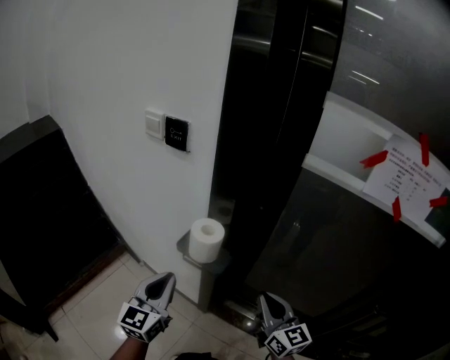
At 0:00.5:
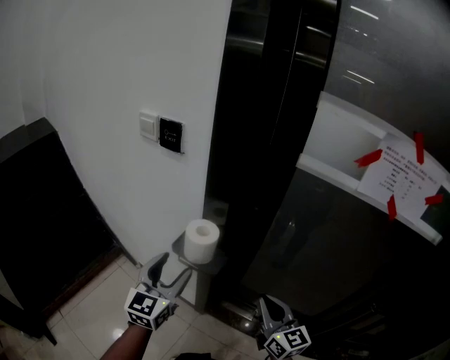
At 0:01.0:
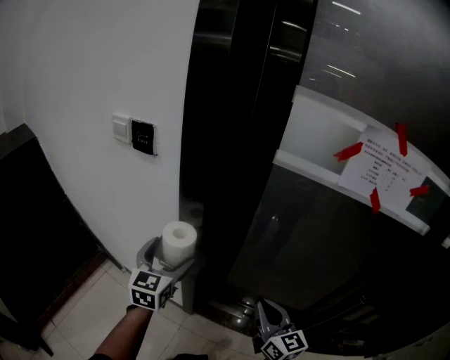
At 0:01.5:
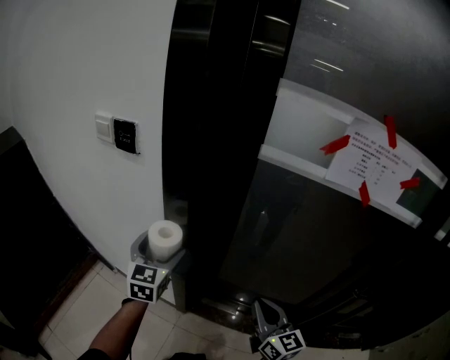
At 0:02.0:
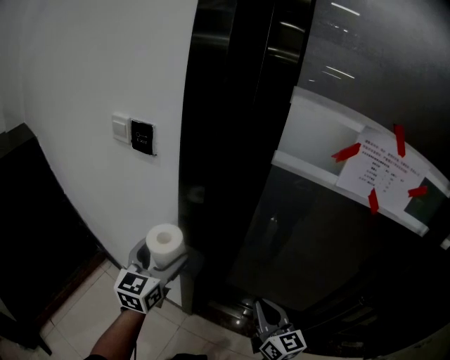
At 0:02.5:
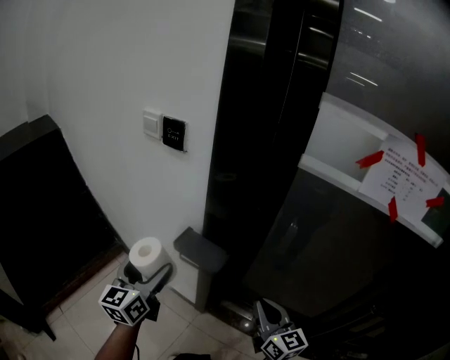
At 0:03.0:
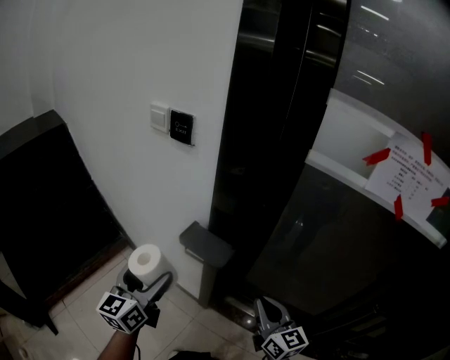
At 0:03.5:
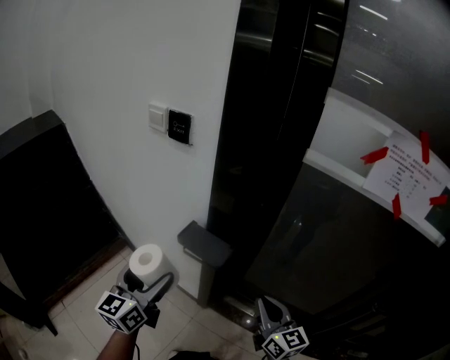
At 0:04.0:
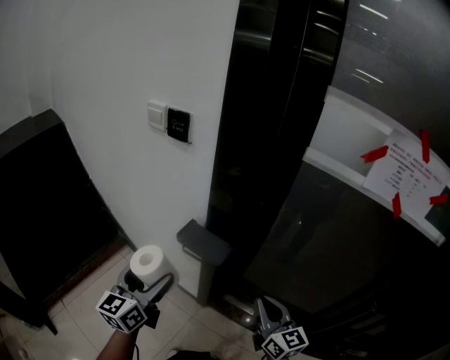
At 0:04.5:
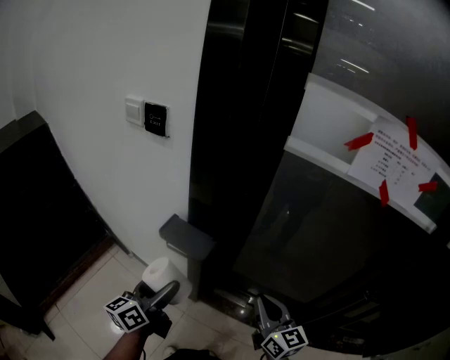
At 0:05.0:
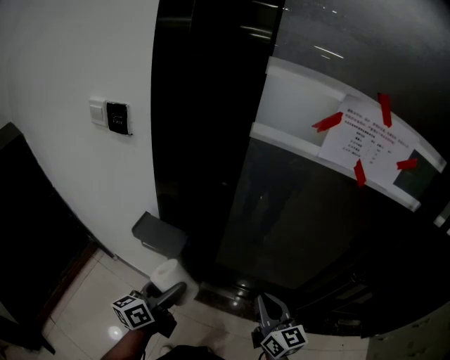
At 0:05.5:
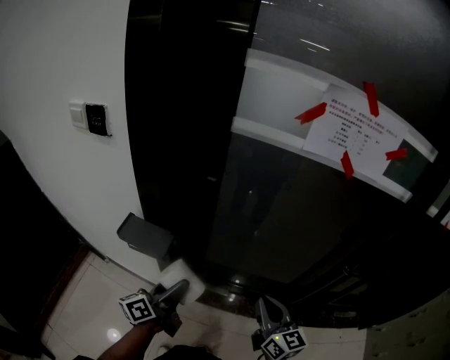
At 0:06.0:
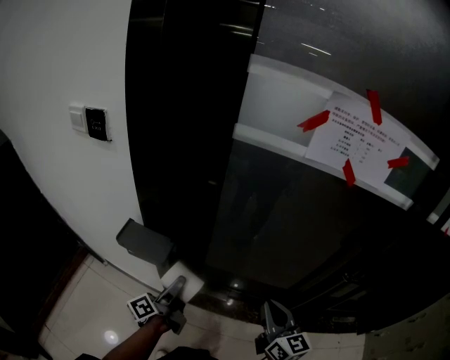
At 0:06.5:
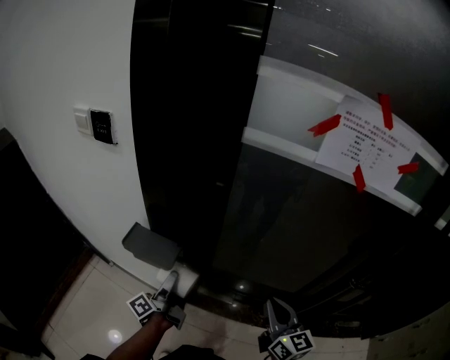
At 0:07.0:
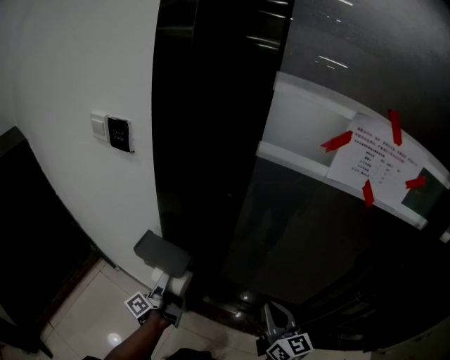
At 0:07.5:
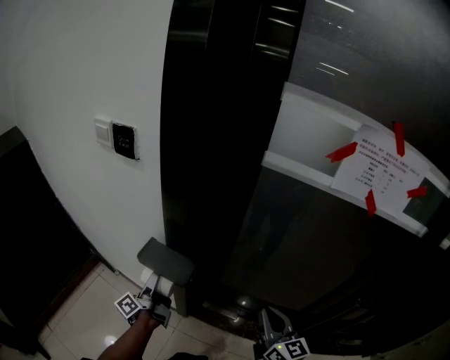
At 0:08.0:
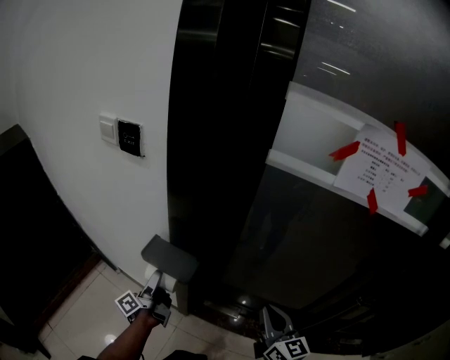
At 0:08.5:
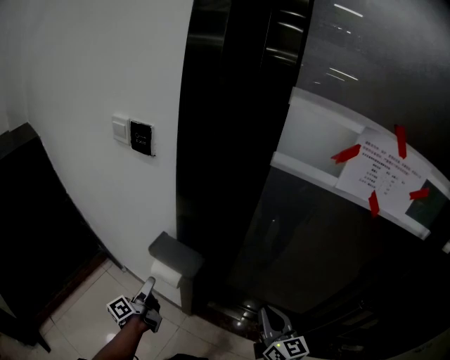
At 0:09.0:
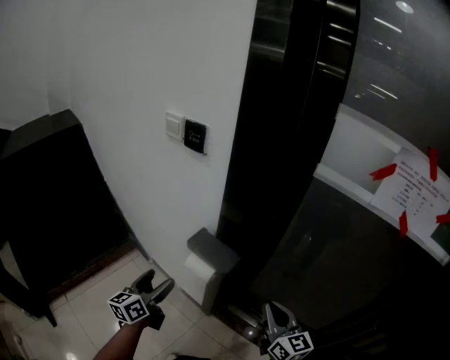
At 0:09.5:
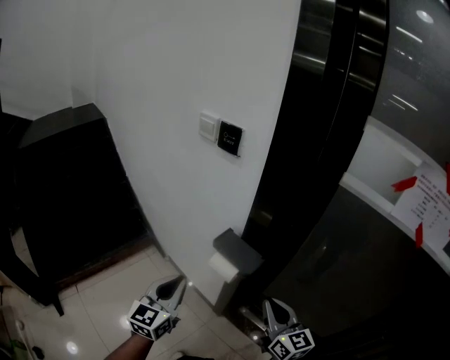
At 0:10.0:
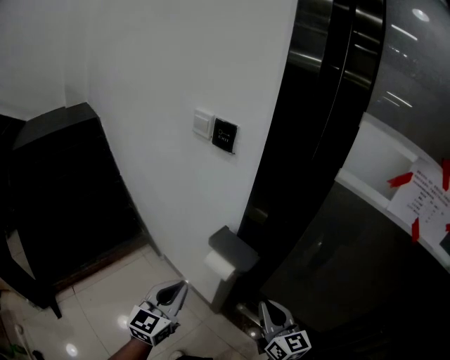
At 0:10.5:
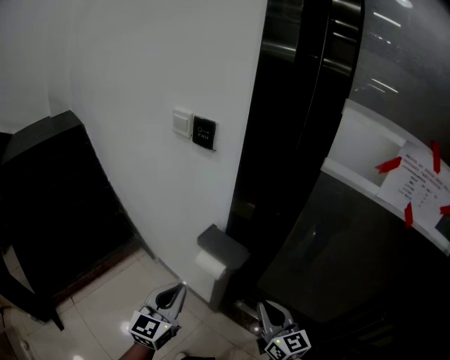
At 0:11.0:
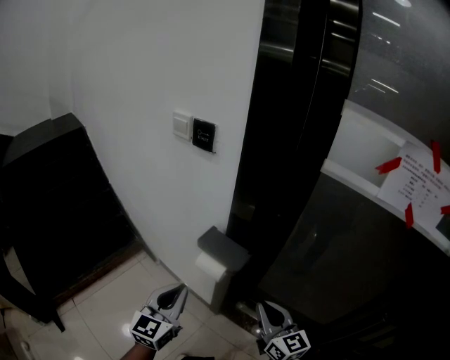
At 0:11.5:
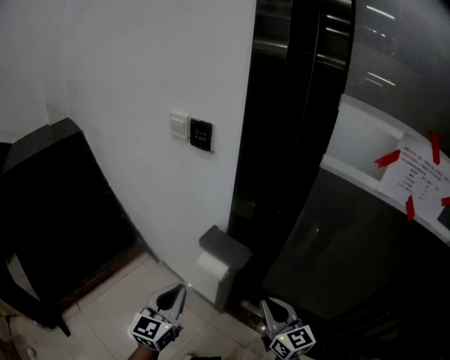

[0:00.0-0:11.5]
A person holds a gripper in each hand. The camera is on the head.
0:00.0 to 0:02.0: The right gripper travels to the right by roughly 5 cm. The left gripper shifts some 10 cm forward and to the right, and opens its fingers.
0:02.0 to 0:04.0: The left gripper heads to the left and backward, covering about 15 cm. The right gripper ends up approximately 5 cm from where it was.
0:04.0 to 0:06.0: The left gripper travels to the right and downward by roughly 25 cm, and twists approximately 70 degrees counterclockwise, seen from behind. Meanwhile the right gripper moves to the right, about 15 cm, and changes its angle by roughly 20 degrees.
0:06.0 to 0:07.5: The right gripper heads to the left and forward, covering approximately 10 cm; the left gripper heads to the left and forward, covering some 15 cm.
0:07.5 to 0:09.5: The right gripper moves to the left, some 15 cm, and turns by roughly 20 degrees. The left gripper shifts approximately 20 cm backward, upward and to the left, rolls clockwise, seen from behind, by approximately 80 degrees, and closes up.
0:09.5 to 0:11.5: The grippers stay close to where they were, moving slightly.

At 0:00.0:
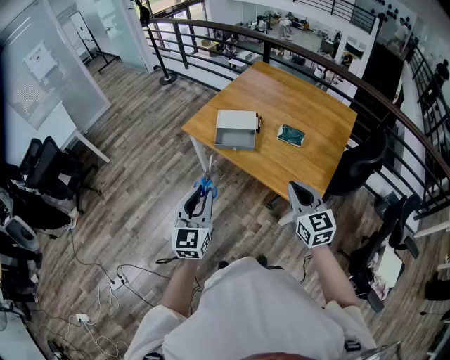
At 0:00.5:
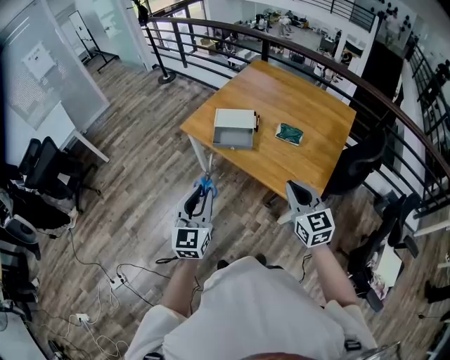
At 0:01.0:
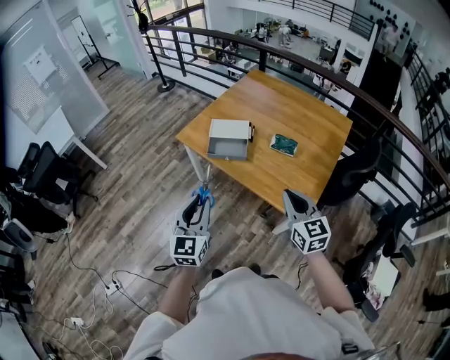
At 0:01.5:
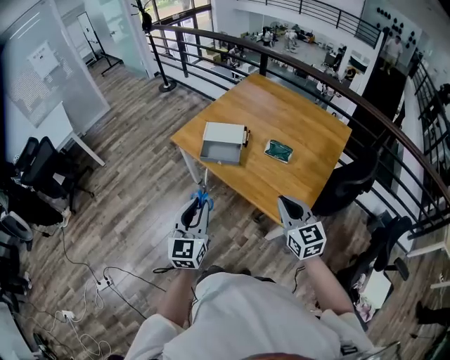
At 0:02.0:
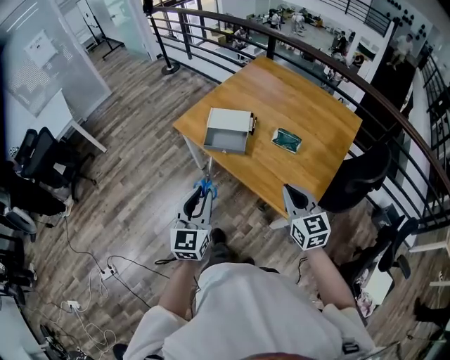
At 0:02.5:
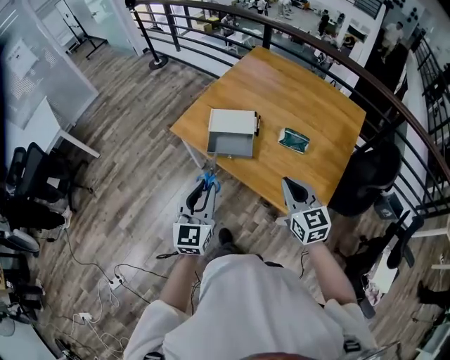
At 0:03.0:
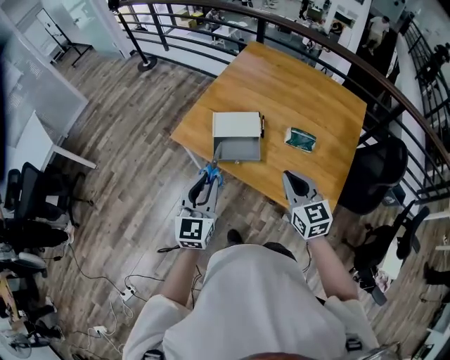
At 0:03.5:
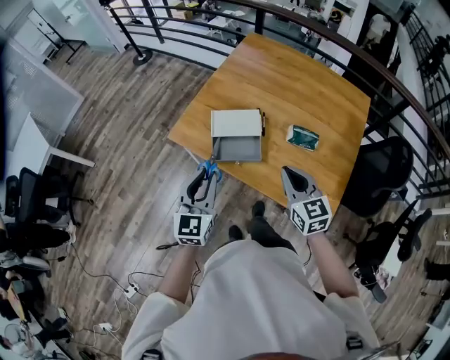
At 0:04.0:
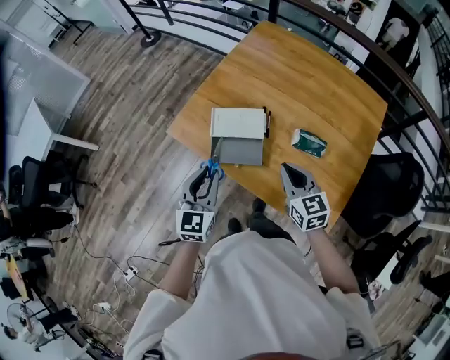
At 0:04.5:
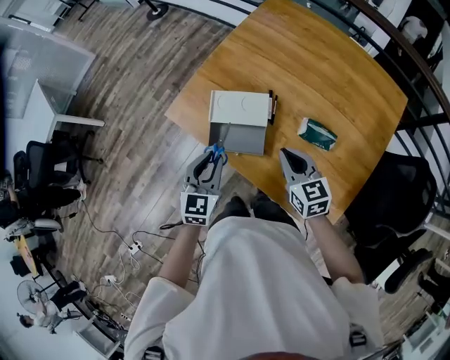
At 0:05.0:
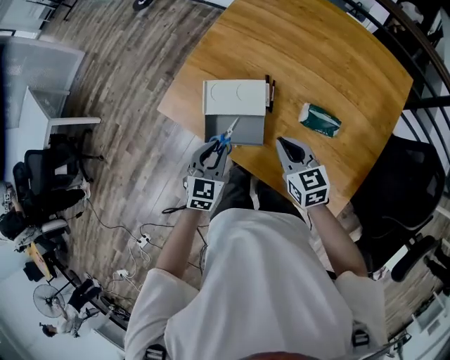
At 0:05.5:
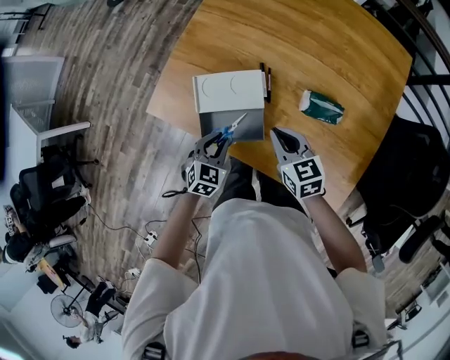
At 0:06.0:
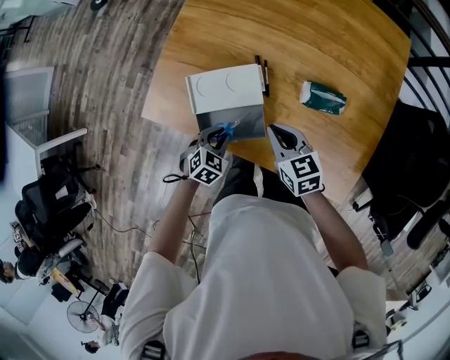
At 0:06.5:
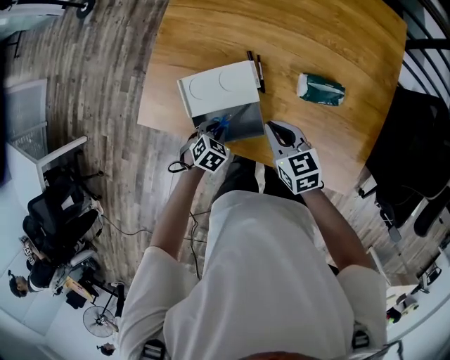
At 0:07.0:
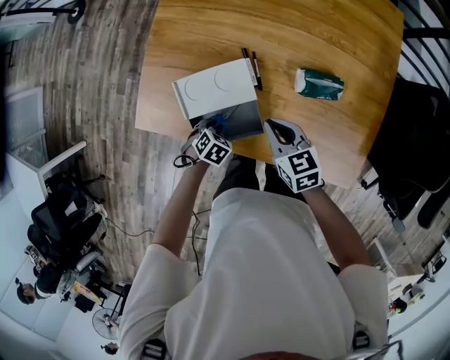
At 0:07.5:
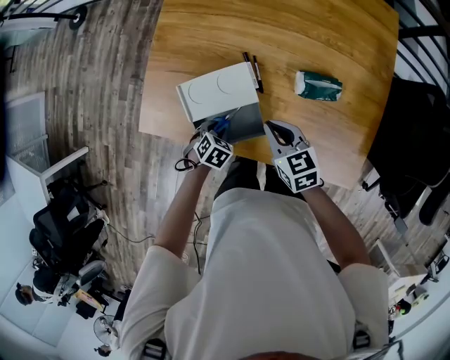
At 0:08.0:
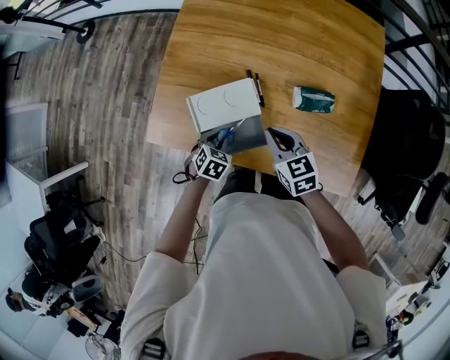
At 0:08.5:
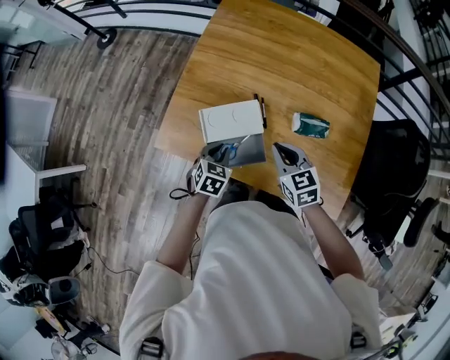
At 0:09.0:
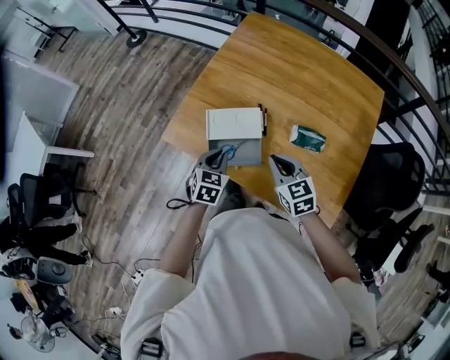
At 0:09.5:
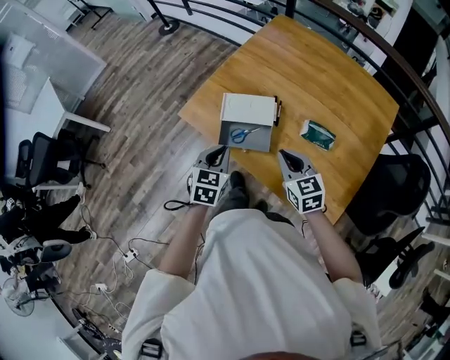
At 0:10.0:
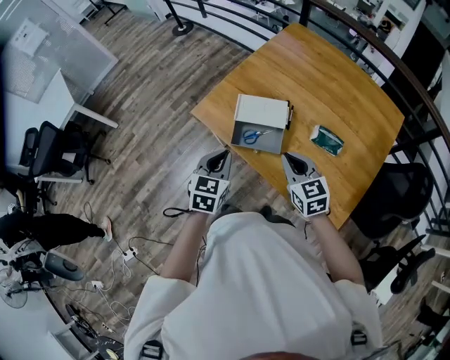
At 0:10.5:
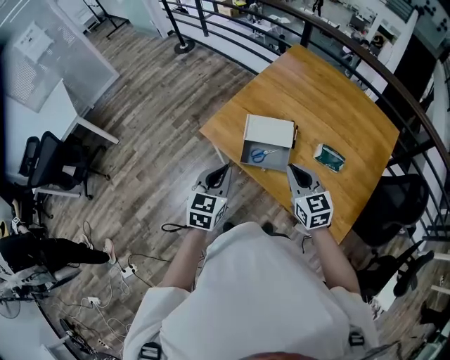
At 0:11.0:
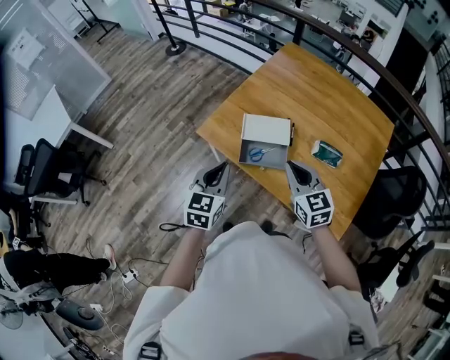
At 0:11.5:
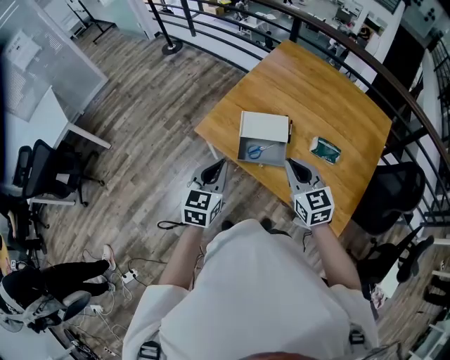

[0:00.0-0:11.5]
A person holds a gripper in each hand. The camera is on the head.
0:00.0 to 0:02.0: The right gripper moves forward and to the right, roughly 10 cm. The left gripper goes about 10 cm to the right and forward.
0:02.0 to 0:04.0: The two grippers go about 30 cm forward.
0:04.0 to 0:06.0: The right gripper moves downward and forward, approximately 20 cm; the left gripper heads downward, covering some 30 cm, and tips its fingers downward by approximately 40 degrees.
0:06.0 to 0:07.5: The left gripper goes some 5 cm downward.
0:07.5 to 0:09.5: The right gripper goes roughly 20 cm upward and backward, and changes its angle by some 20 degrees. The left gripper is displaced upward and backward by some 30 cm, points its fingers roughly 40 degrees further upward, and closes.
0:09.5 to 0:11.5: Both grippers travel together to the left and upward, approximately 15 cm.

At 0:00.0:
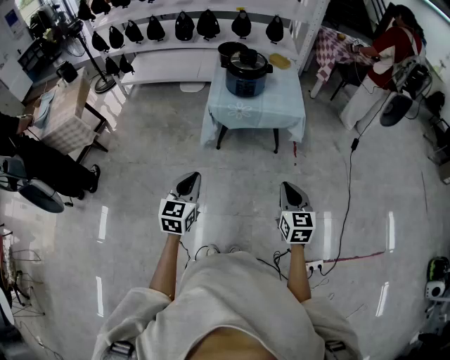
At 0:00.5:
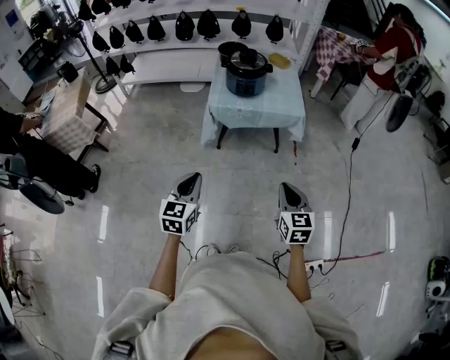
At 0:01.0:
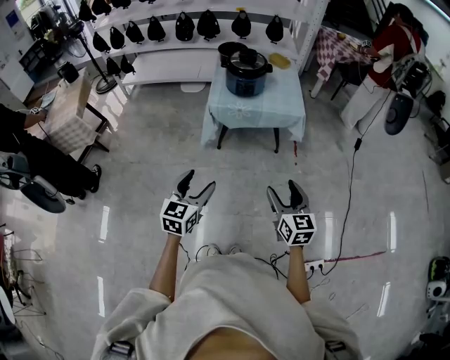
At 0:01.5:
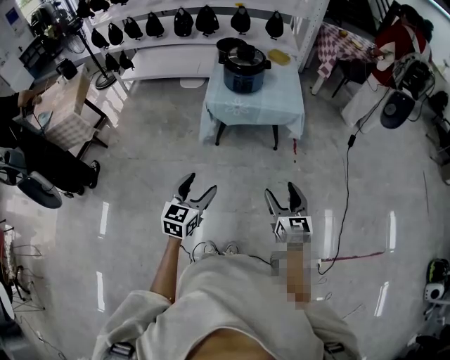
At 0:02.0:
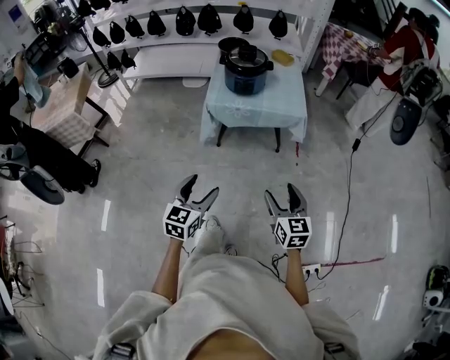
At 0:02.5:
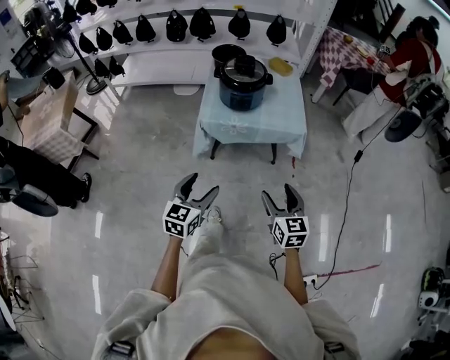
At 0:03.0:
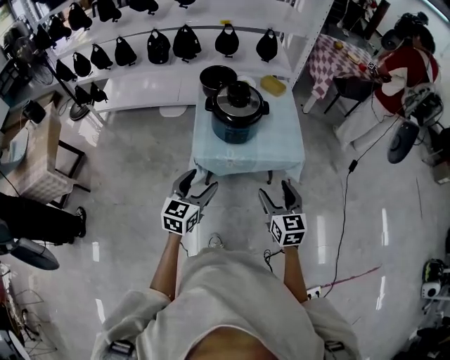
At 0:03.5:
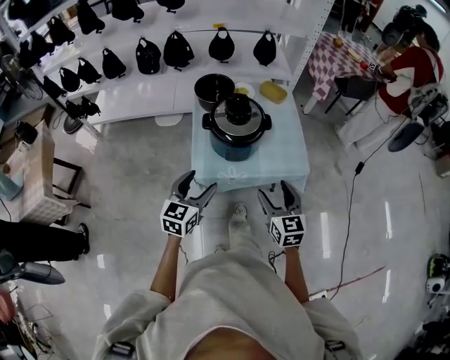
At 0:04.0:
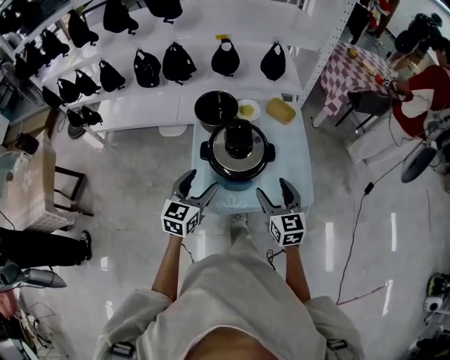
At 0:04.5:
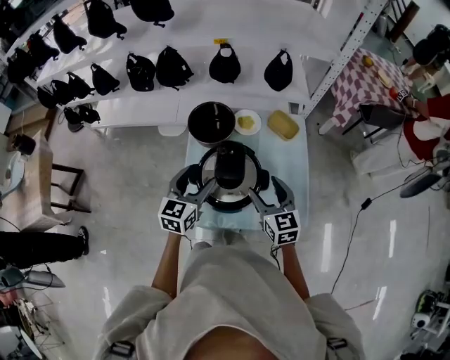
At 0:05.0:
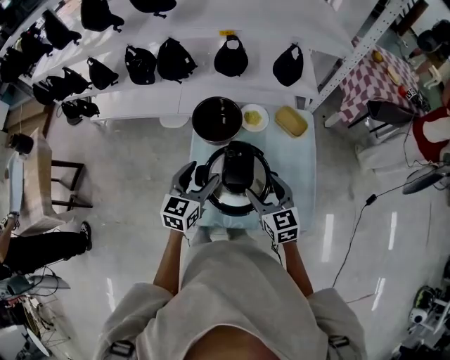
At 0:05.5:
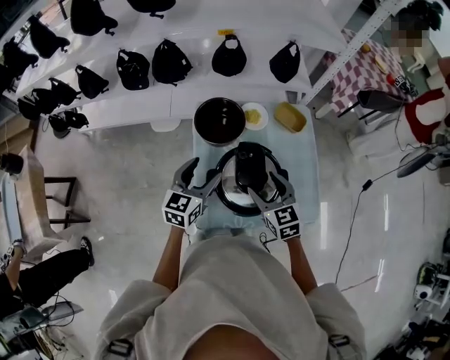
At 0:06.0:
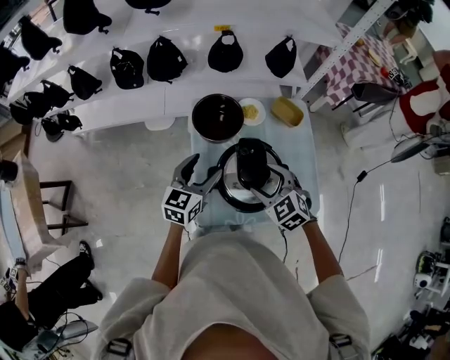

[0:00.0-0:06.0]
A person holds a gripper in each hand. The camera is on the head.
0:00.0 to 0:02.0: The left gripper travels to the right by some 10 cm, and opens its fingers. The right gripper opens.
0:02.0 to 0:04.0: The two grippers travel together, forward, some 60 cm.
0:04.0 to 0:06.0: The right gripper is displaced forward and to the left by about 20 cm, and turns by approximately 40 degrees; the left gripper moves forward, roughly 20 cm.
